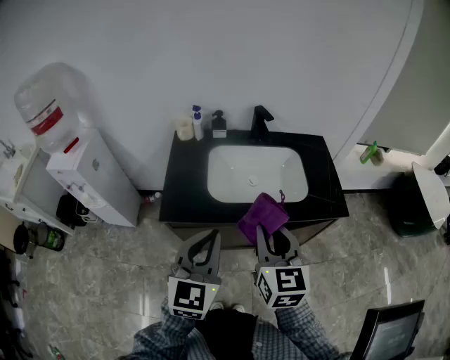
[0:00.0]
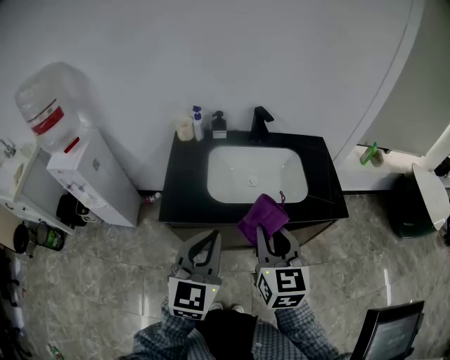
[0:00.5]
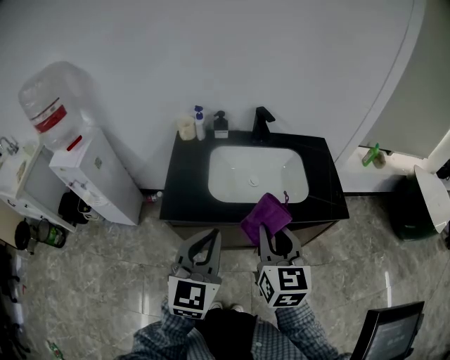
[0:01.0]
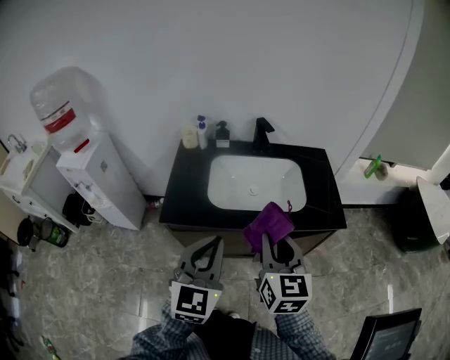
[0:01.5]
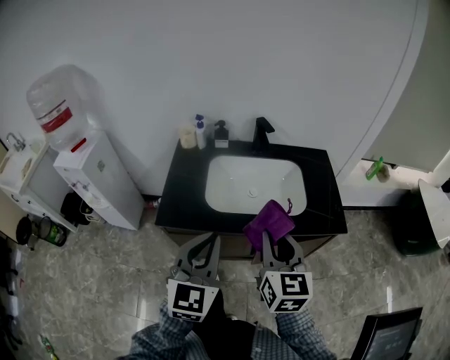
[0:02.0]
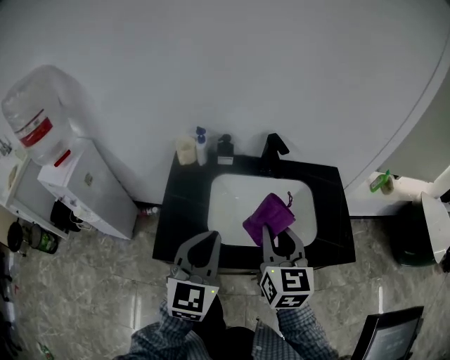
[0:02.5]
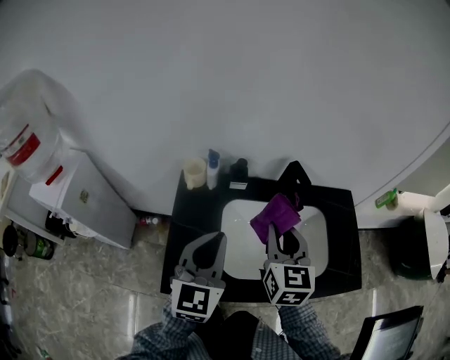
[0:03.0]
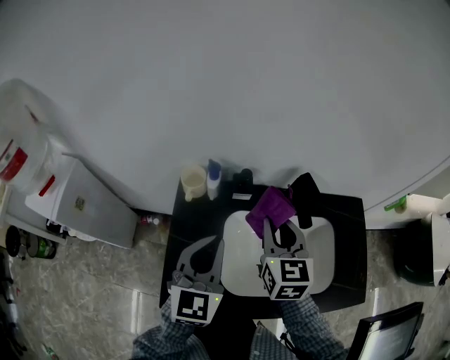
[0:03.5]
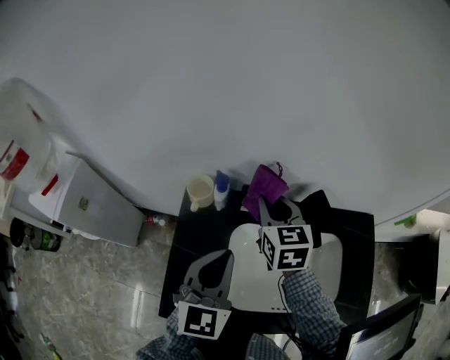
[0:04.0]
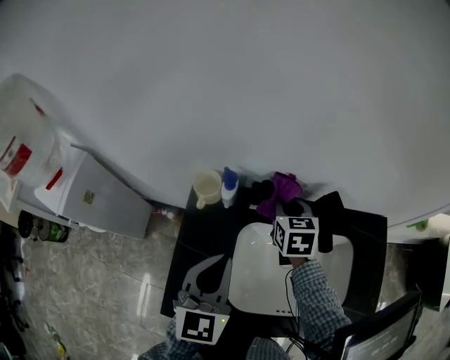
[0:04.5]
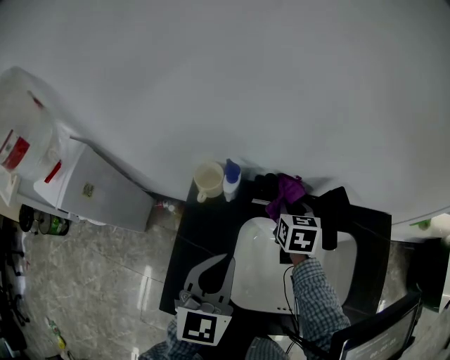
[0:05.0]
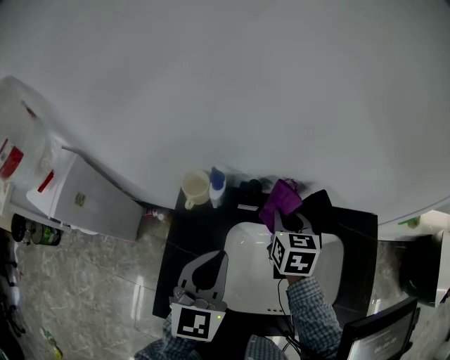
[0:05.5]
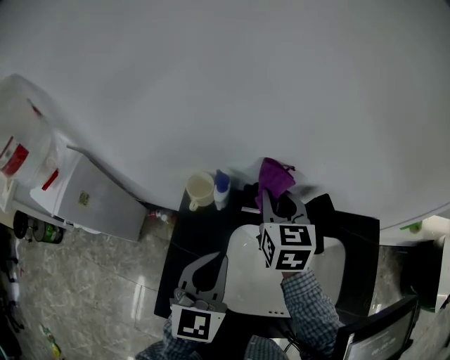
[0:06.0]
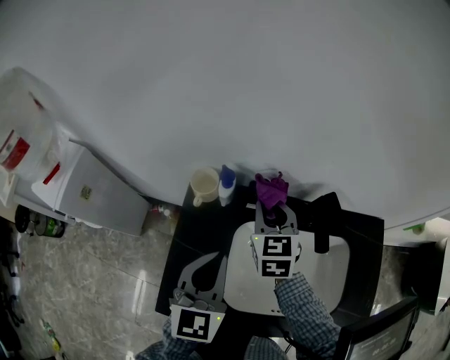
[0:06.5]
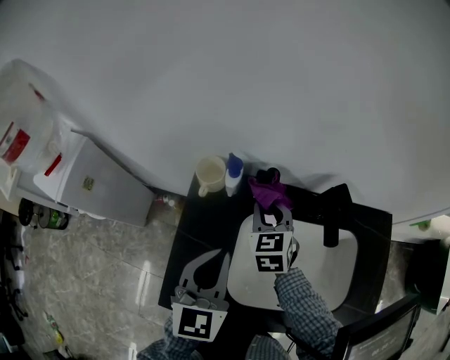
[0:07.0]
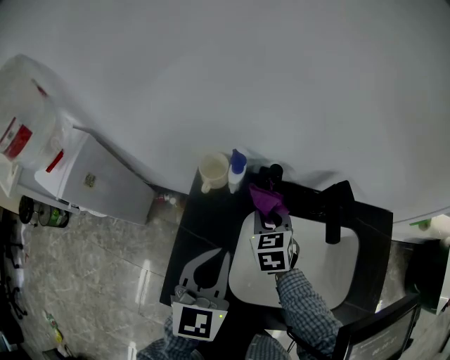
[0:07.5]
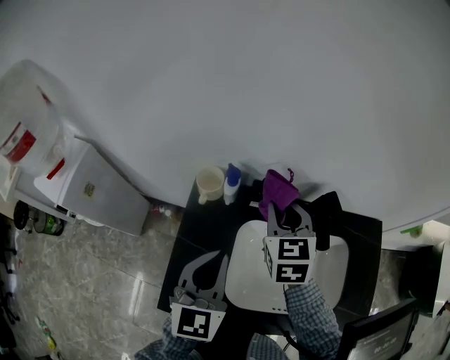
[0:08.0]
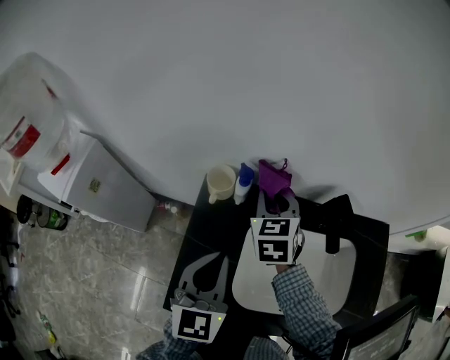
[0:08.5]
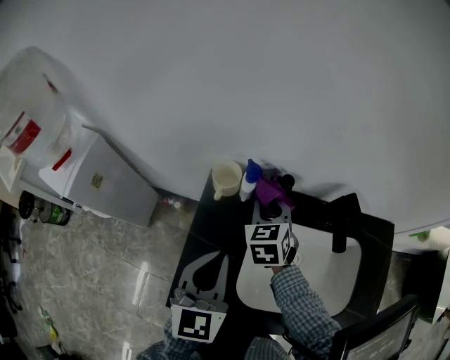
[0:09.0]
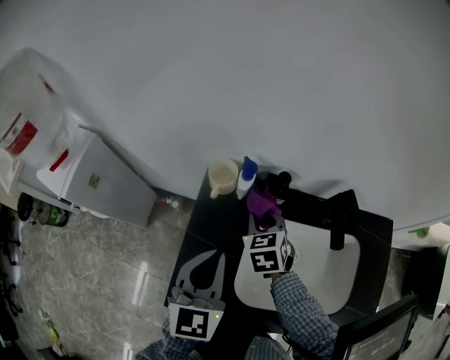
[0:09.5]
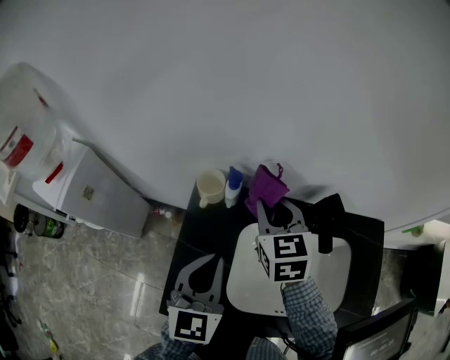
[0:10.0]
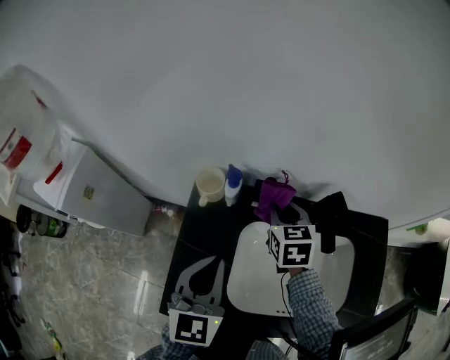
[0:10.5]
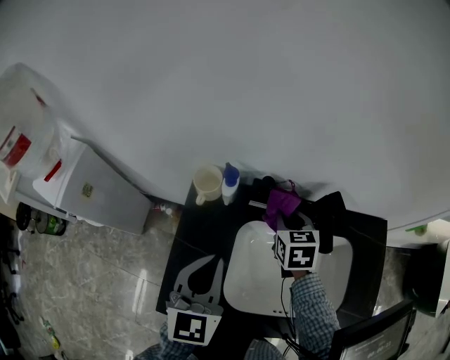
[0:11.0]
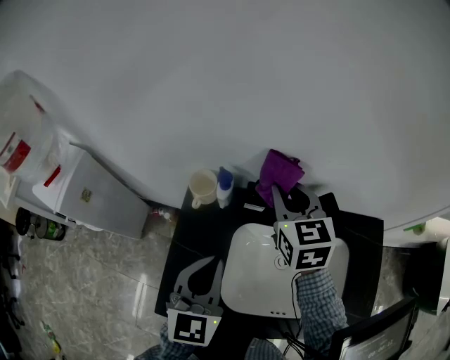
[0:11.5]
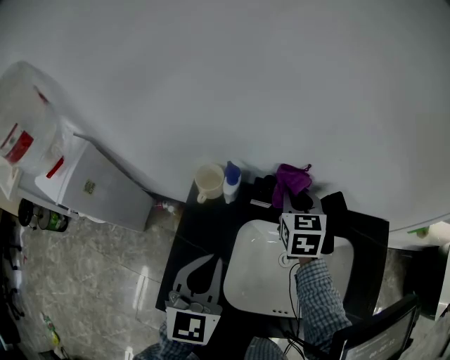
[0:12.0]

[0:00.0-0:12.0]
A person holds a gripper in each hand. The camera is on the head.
0:00.0 to 0:02.0: The right gripper goes roughly 5 cm to the right.
0:02.0 to 0:04.0: The two grippers go some 40 cm forward.
0:04.0 to 0:06.0: The right gripper reaches roughly 15 cm downward, then returns.
0:06.0 to 0:08.0: The right gripper moves some 15 cm downward and comes back.
0:08.0 to 0:10.0: The right gripper reaches some 15 cm downward, then returns.
0:10.0 to 0:12.0: The right gripper swings up and down, roughly 15 cm each way, with 2 reversals.

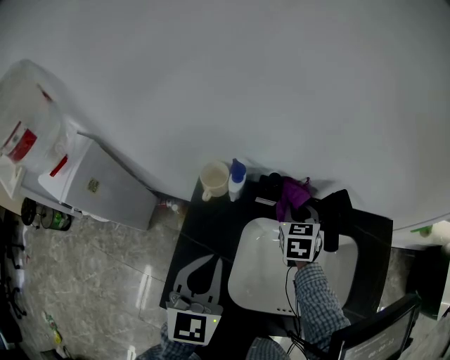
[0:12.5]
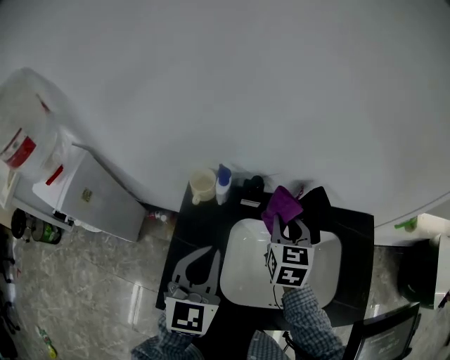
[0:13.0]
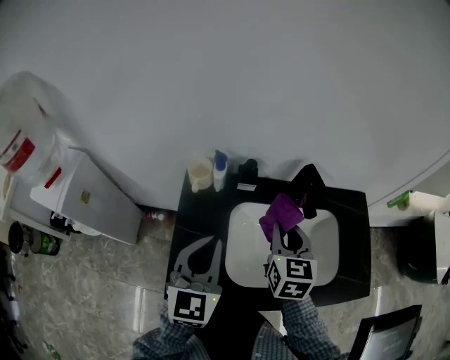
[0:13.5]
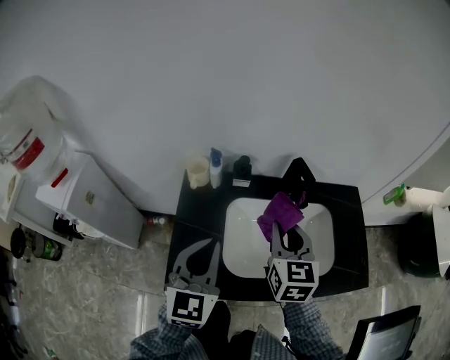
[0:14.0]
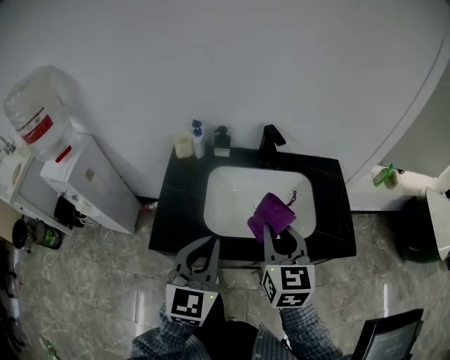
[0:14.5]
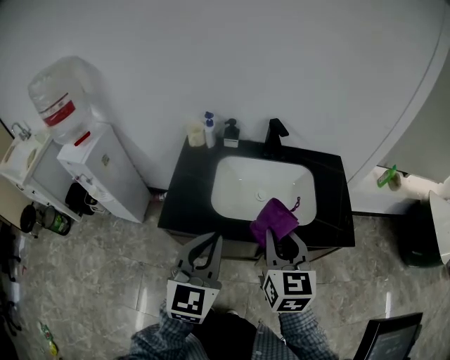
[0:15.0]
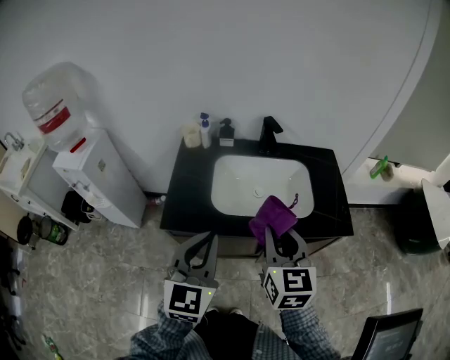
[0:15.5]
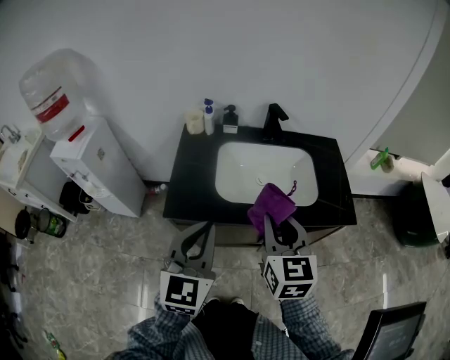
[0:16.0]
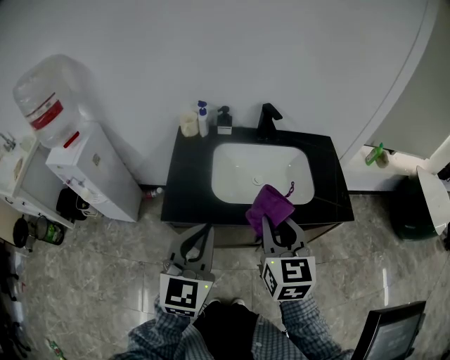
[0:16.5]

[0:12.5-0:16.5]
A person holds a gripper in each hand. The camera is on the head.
0:12.5 to 0:14.5: The left gripper goes approximately 25 cm backward and to the right, while the right gripper heads backward and upward, covering some 40 cm, and rotates roughly 30 degrees.
0:14.5 to 0:16.5: The two grippers go about 10 cm backward.

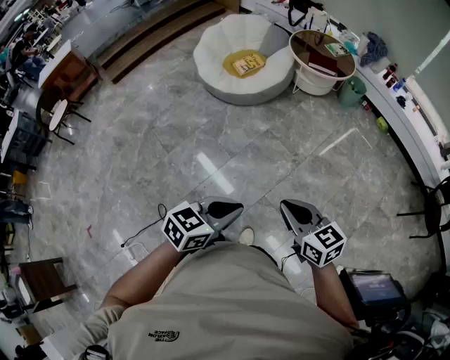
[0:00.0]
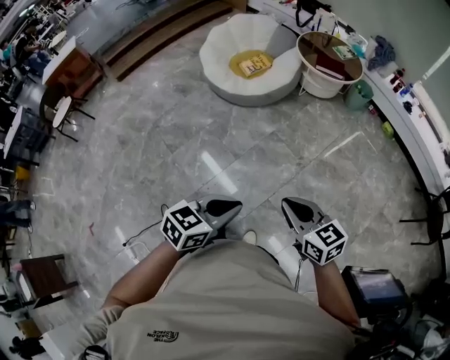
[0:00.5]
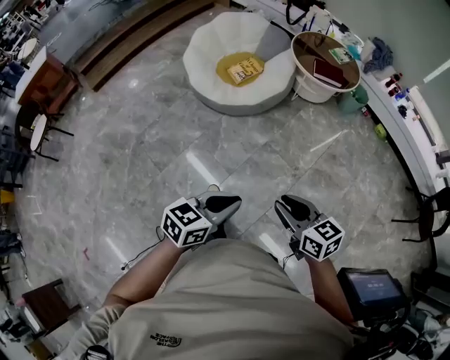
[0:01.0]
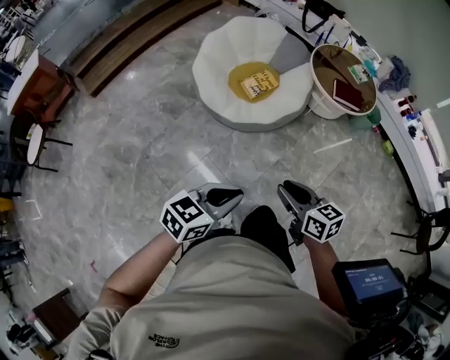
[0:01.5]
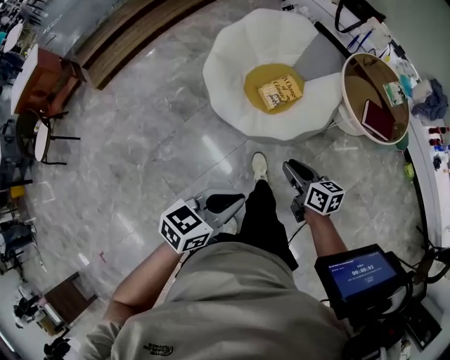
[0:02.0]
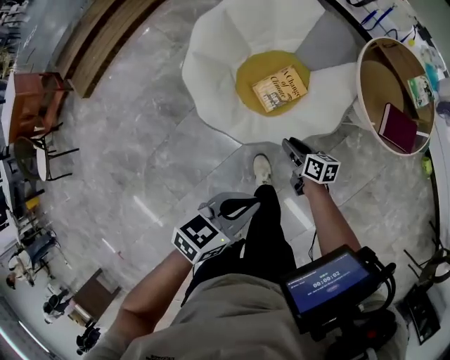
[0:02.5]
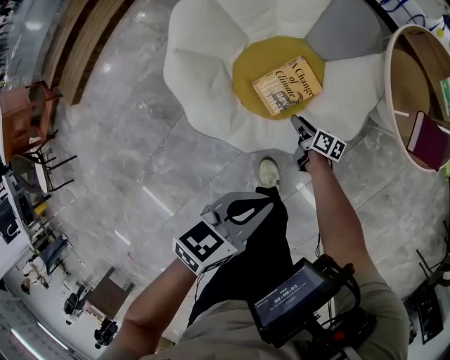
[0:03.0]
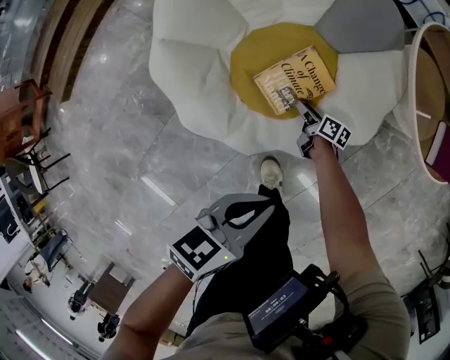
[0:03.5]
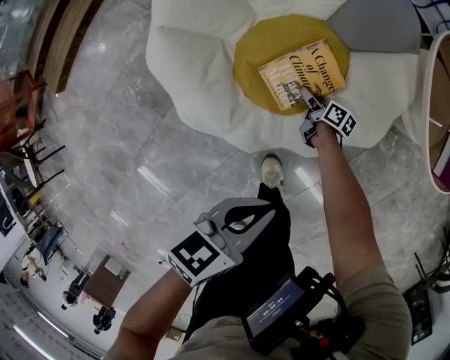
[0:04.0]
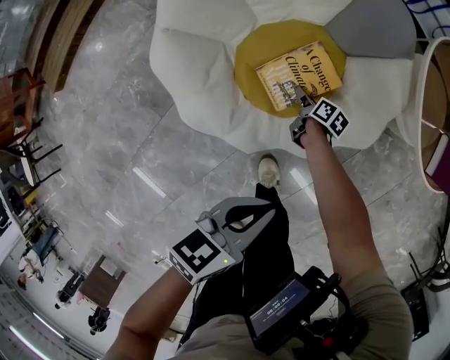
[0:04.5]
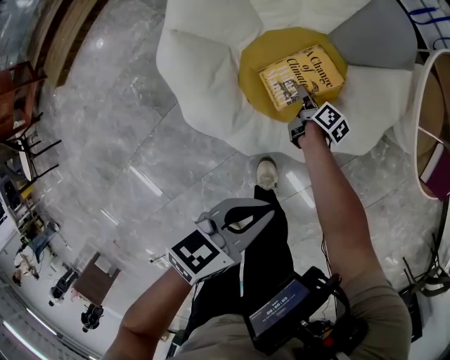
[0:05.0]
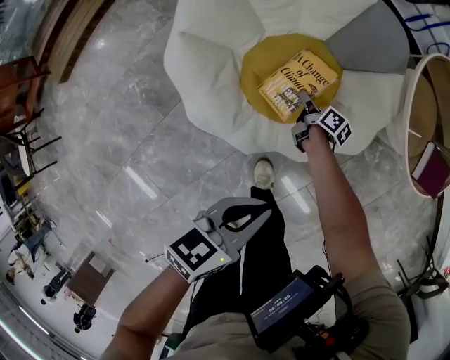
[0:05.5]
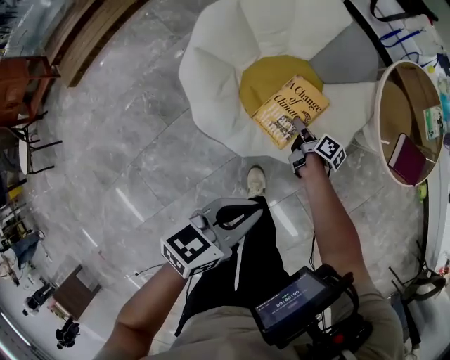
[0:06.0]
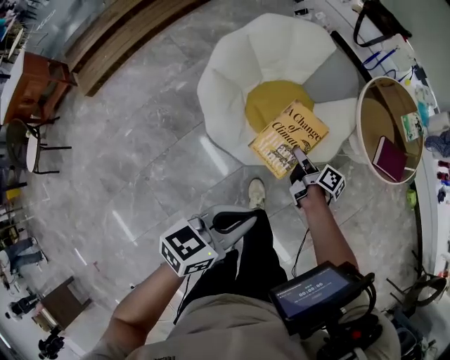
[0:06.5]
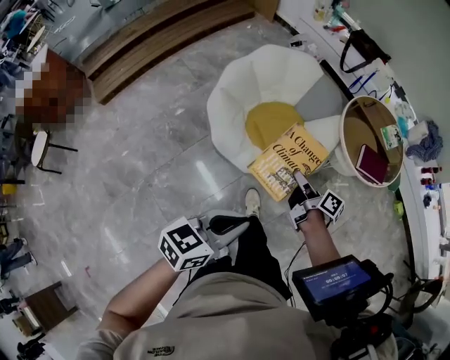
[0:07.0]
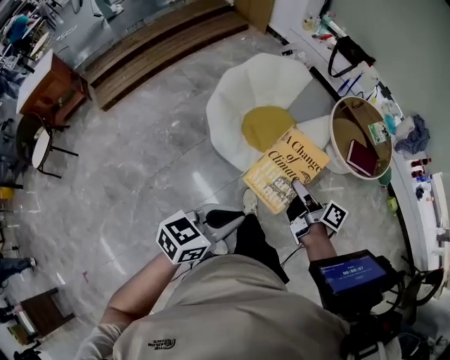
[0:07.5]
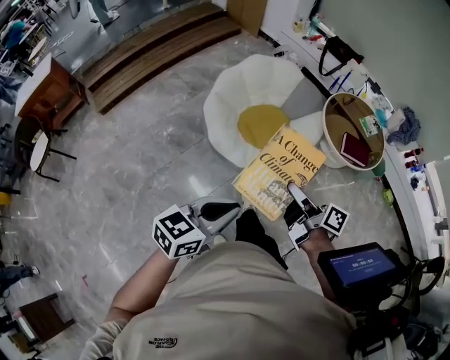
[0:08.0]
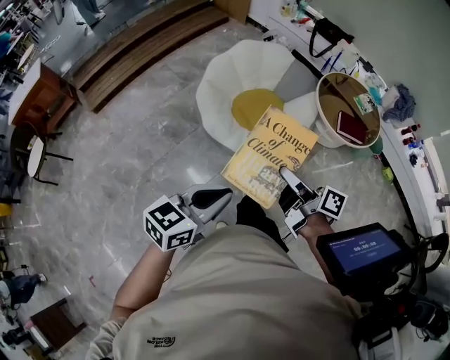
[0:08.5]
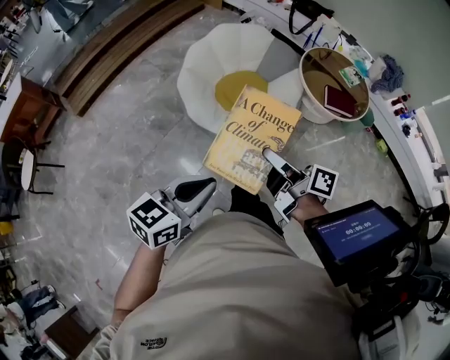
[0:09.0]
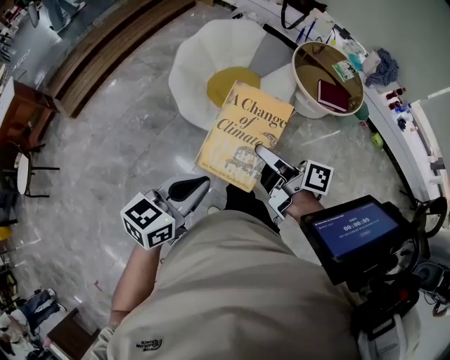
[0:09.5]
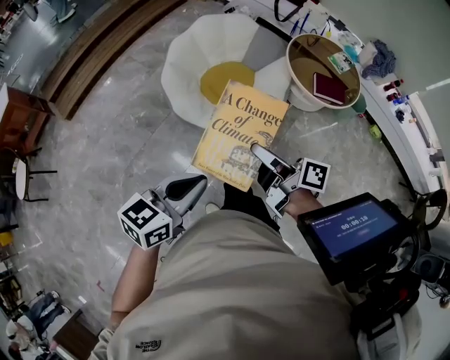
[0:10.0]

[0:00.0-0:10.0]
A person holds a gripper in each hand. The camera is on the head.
0:00.0 to 0:02.0: The pair of grippers is taken forward and to the left, approximately 70 cm. The right gripper swivels some 30 degrees, and opens its fingers.
0:02.0 to 0:04.0: The right gripper is displaced downward and forward by some 70 cm, swivels roughly 40 degrees, and opens its fingers. Meanwhile the left gripper heads downward and forward, covering about 50 cm.
0:04.0 to 0:06.0: Both grippers move upward, roughly 20 cm. The right gripper closes its fingers.
0:06.0 to 0:08.0: The right gripper heads upward and backward, covering some 70 cm, and changes its angle by about 30 degrees; the left gripper heads backward and upward, covering approximately 40 cm.
0:08.0 to 0:10.0: There are only small adjustments of the grippers.

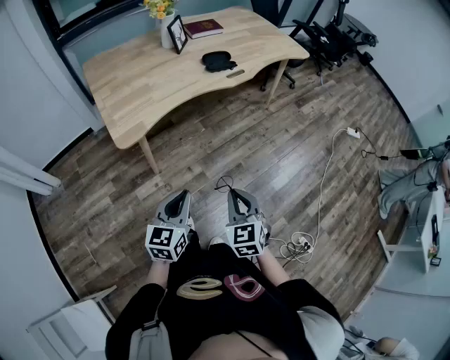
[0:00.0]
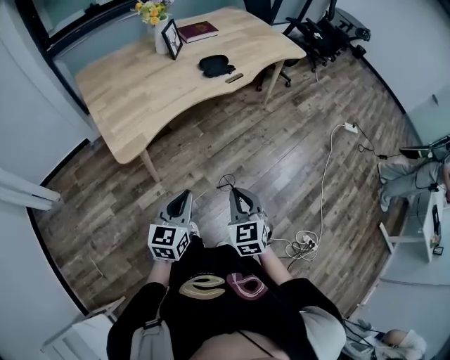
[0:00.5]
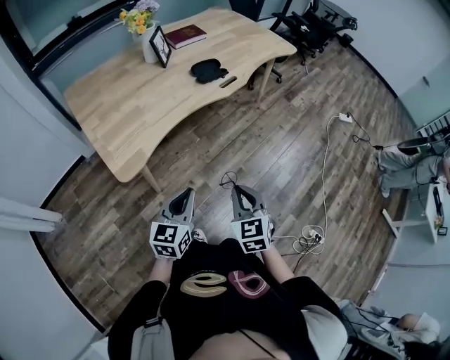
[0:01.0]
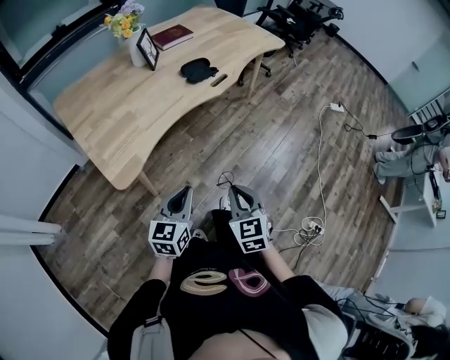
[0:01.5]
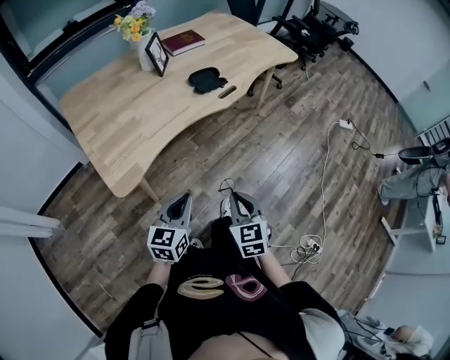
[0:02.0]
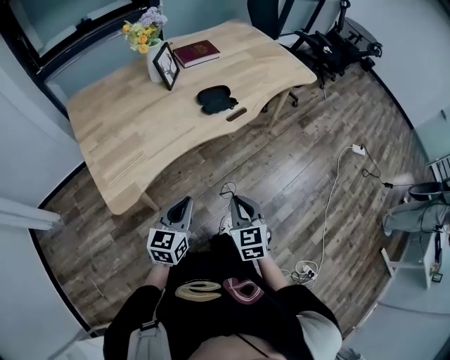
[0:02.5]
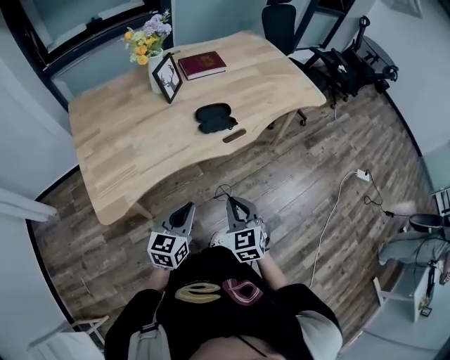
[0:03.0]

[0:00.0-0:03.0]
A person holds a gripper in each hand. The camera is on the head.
0:00.0 to 0:01.5: Both grippers travel together forward and to the left, approximately 10 cm.
0:01.5 to 0:03.0: Both grippers travel together forward, about 25 cm.
